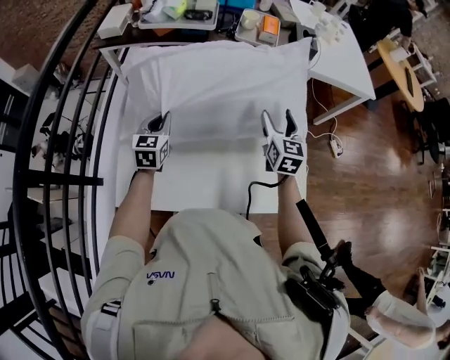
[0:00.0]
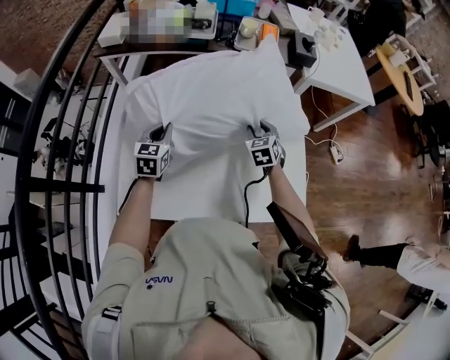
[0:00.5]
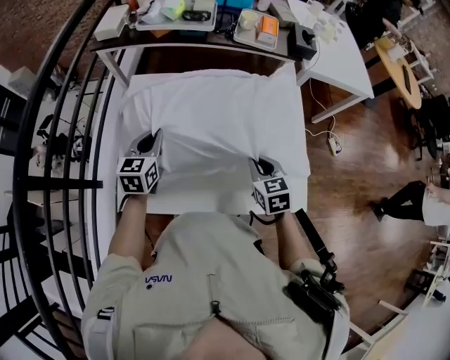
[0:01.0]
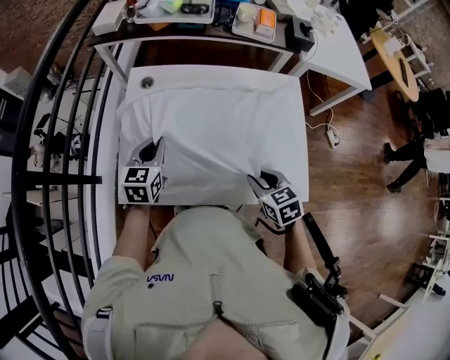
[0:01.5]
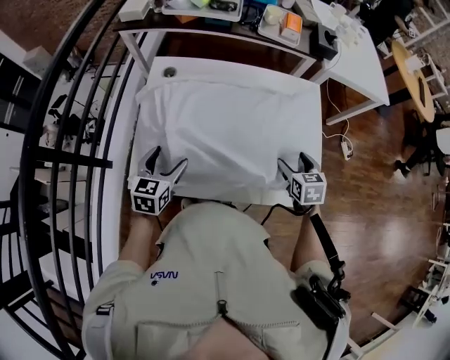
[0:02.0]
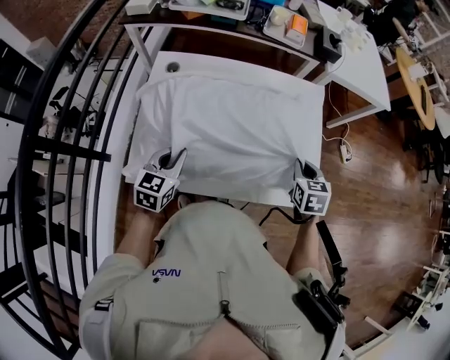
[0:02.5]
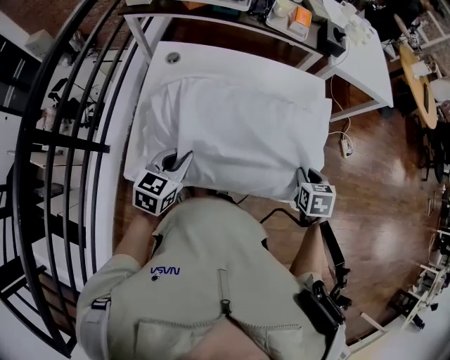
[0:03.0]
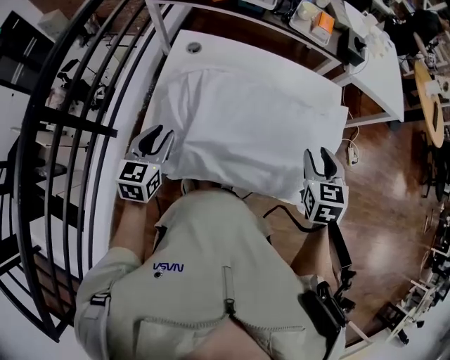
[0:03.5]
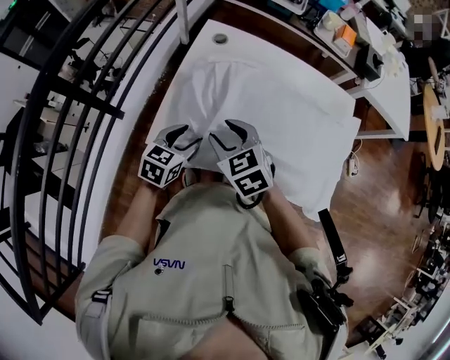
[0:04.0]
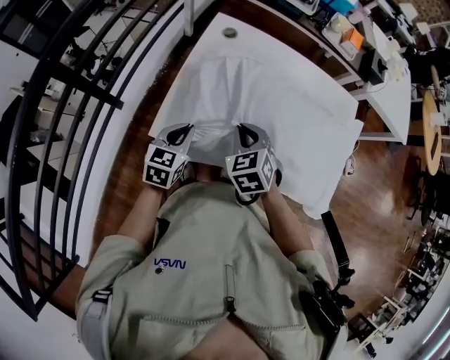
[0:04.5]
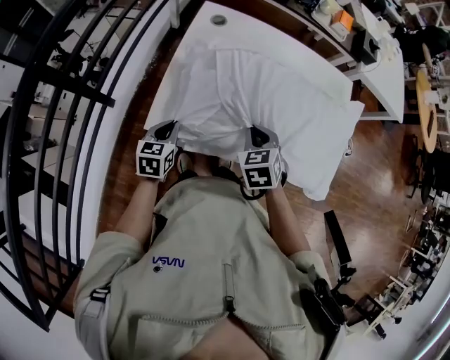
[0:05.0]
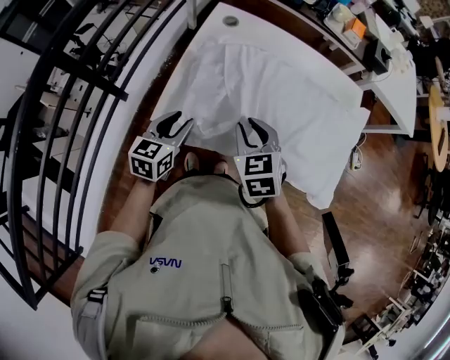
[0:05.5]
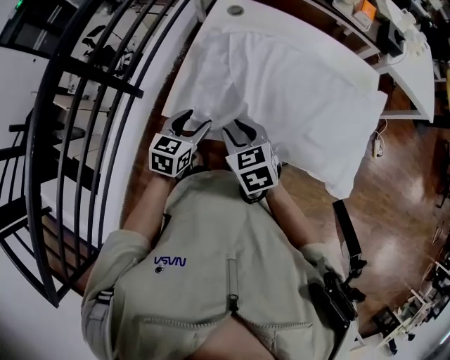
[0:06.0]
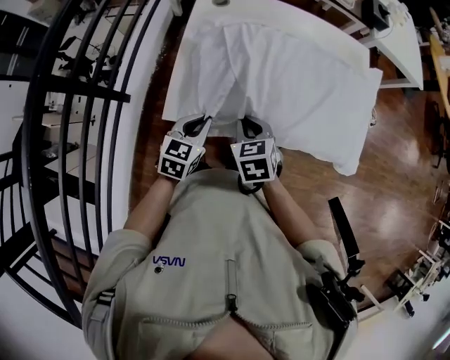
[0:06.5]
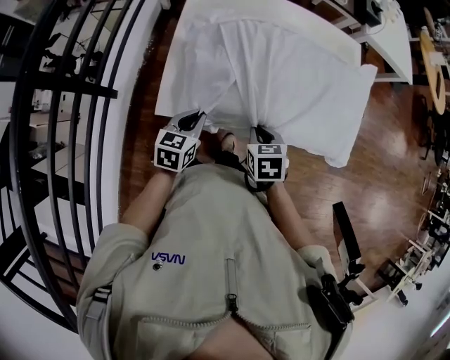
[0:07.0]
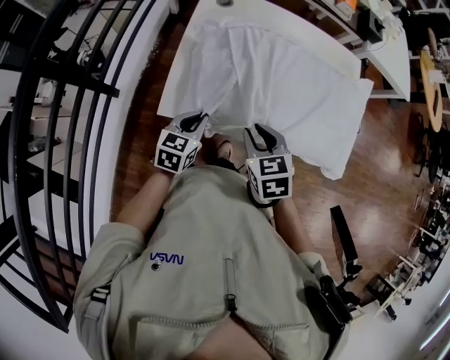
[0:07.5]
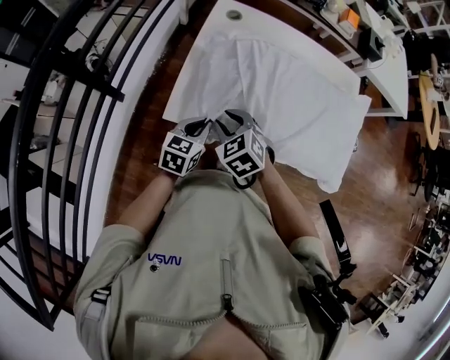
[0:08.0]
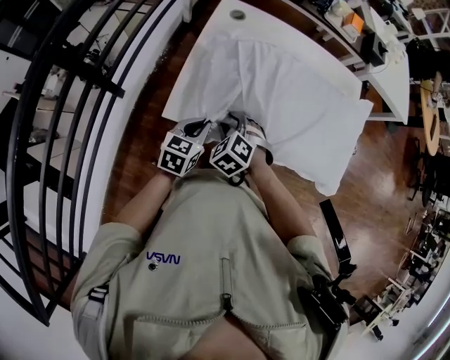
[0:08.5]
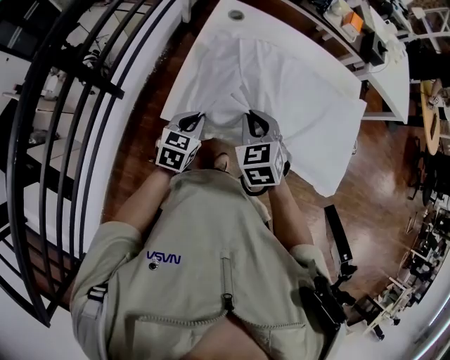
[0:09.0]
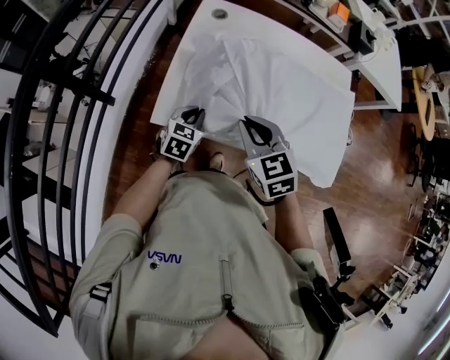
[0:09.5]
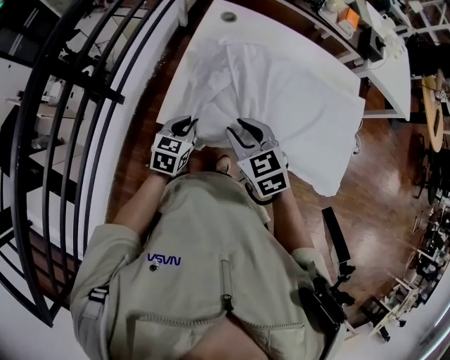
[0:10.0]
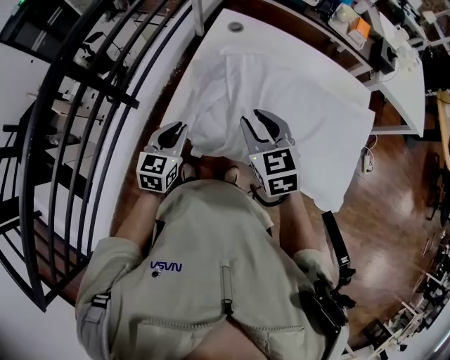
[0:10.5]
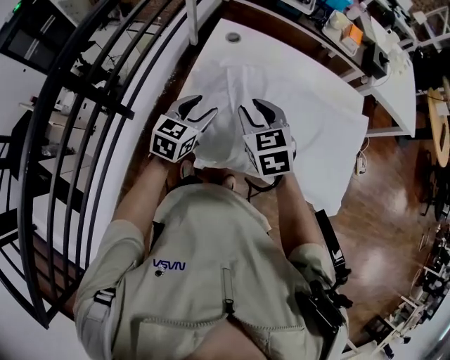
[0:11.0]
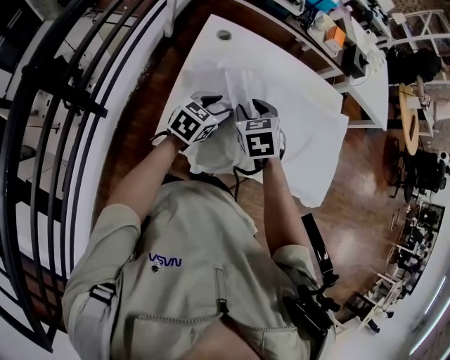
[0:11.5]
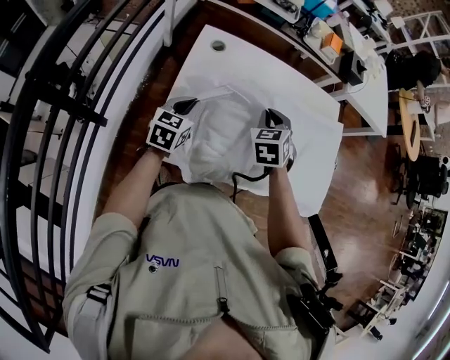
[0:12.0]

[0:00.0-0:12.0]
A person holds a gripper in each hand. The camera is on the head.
0:00.0 to 0:02.0: The left gripper travels backward by about 20 cm, and opens, while the right gripper goes about 15 cm backward and downward, points its fingers approximately 30 degrees further downward, and closes, then opens again.
0:02.0 to 0:04.0: The left gripper changes place by some 5 cm, and closes and opens again. The right gripper ends up about 35 cm from where it was, rotates roughly 40 degrees, and closes up.
0:04.0 to 0:06.0: The right gripper moves backward and downward, roughly 10 cm, travels to the right and back again, approximately 10 cm each way, and closes, then reopens. The left gripper travels downward and back again, roughly 5 cm each way, and closes and opens again.
0:06.0 to 0:08.0: The right gripper moves to the left, approximately 5 cm, swivels roughly 20 degrees, and closes, then reopens. The left gripper closes up.
0:08.0 to 0:10.0: The right gripper moves upward, roughly 5 cm.
0:10.0 to 0:12.0: The left gripper ends up some 15 cm from where it was, and opens, then closes once more; the right gripper changes place by about 20 cm, and rotates some 40 degrees.

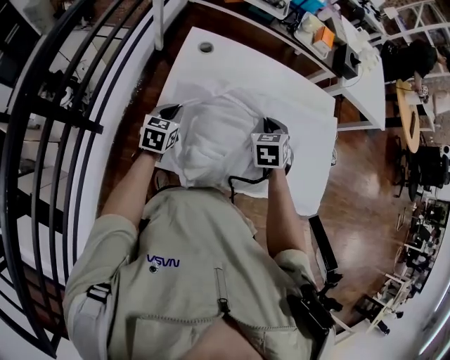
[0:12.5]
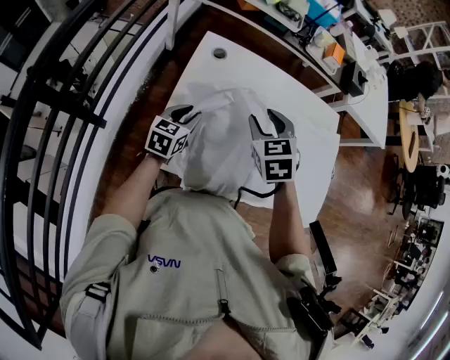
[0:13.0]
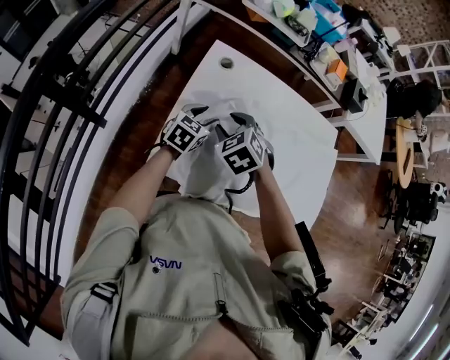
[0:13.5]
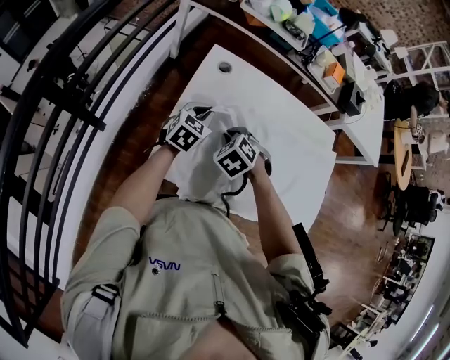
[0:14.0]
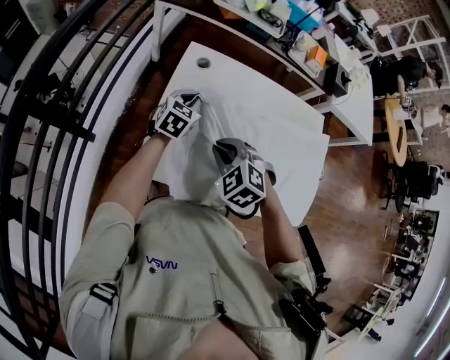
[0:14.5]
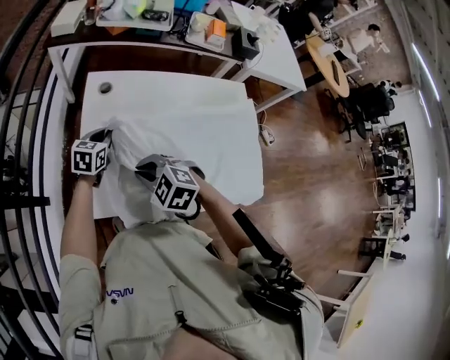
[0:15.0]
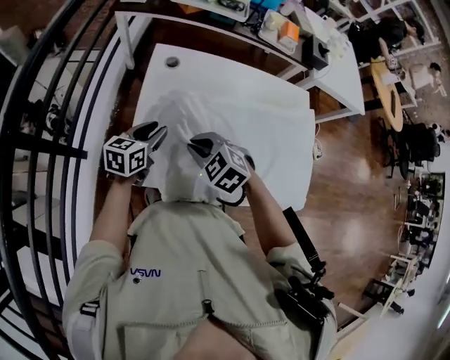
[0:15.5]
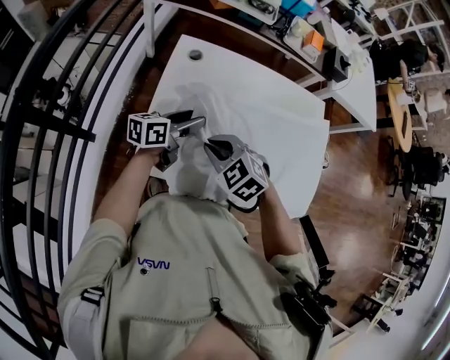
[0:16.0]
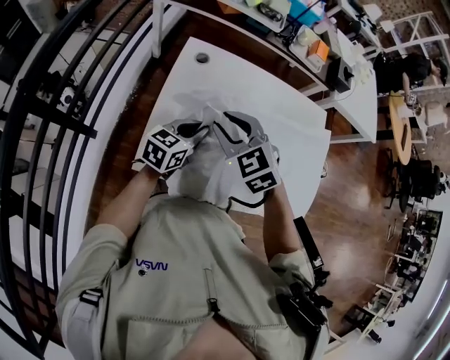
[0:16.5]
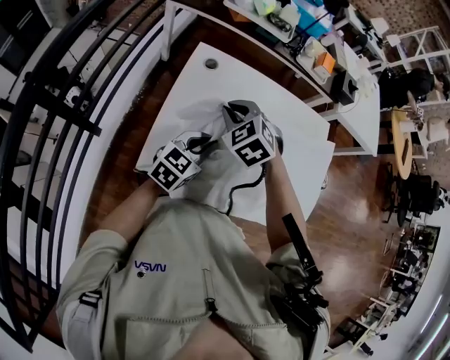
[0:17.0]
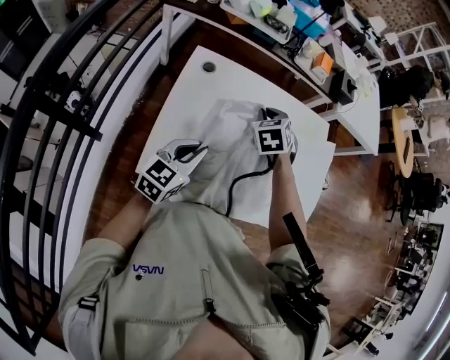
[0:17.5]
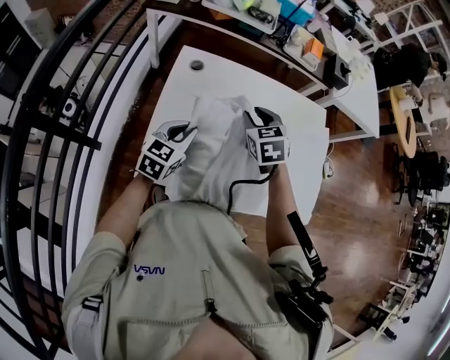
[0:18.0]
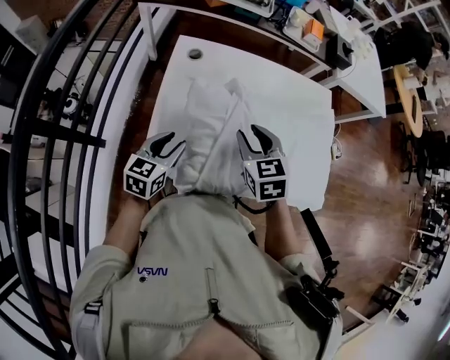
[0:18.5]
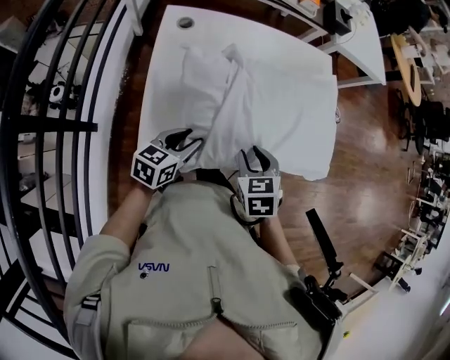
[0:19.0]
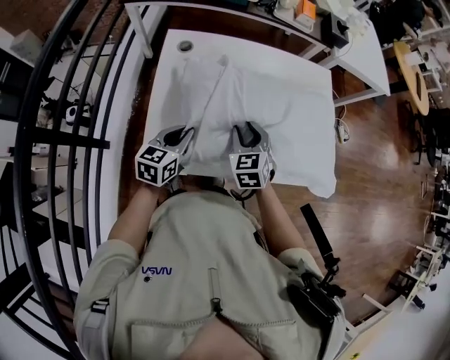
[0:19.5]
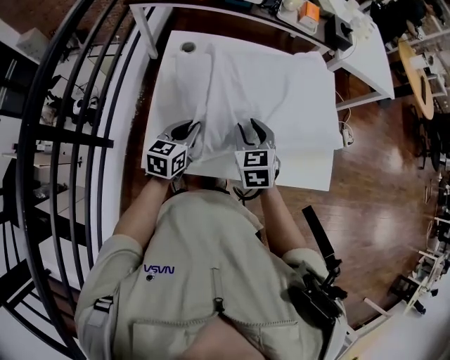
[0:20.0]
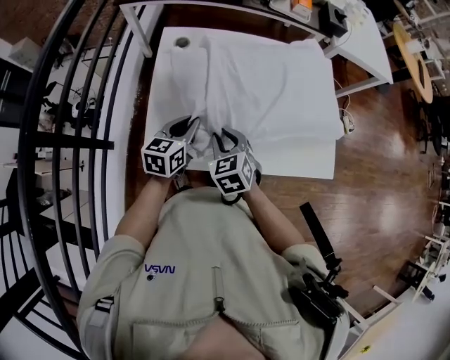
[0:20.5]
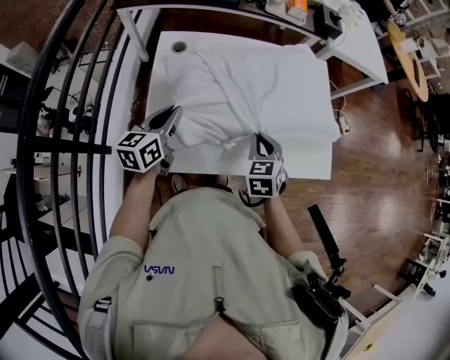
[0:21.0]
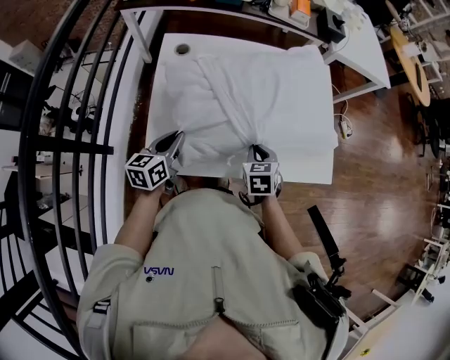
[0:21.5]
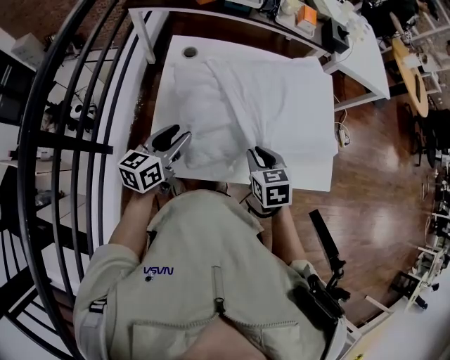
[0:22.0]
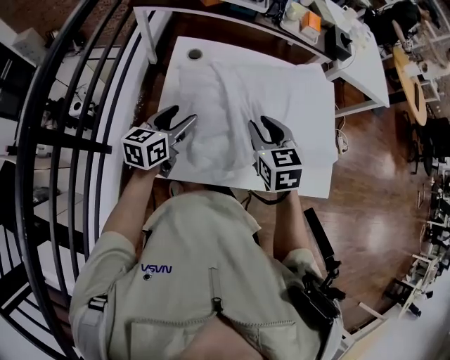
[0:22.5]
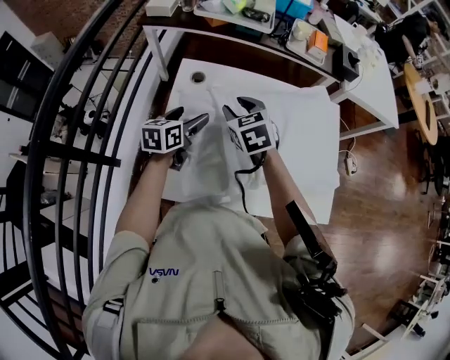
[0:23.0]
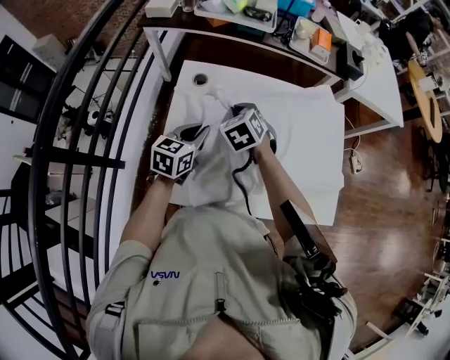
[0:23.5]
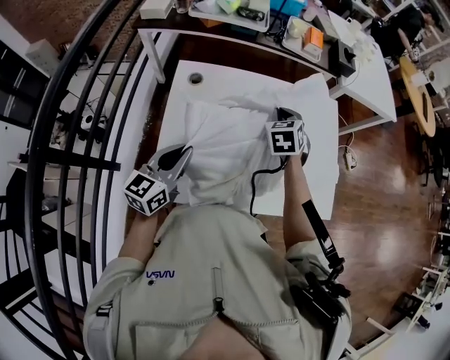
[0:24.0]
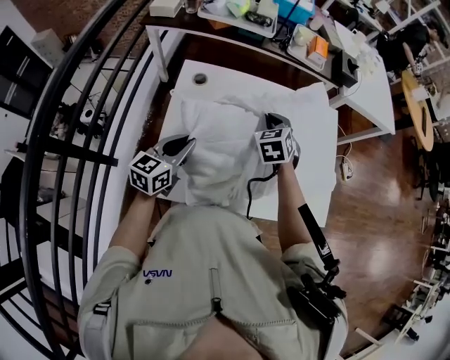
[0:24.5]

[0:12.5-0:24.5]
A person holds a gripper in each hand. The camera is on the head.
0:12.5 to 0:14.5: The right gripper heads to the left and backward, covering approximately 20 cm, swivels approximately 50 degrees, and opens, then closes once more. Meanwhile the left gripper is displaced forward and upward by approximately 10 cm, and opens, then closes once more.
0:14.5 to 0:16.5: The right gripper goes about 5 cm upward, and rotates roughly 20 degrees, while the left gripper goes some 10 cm backward, swivels about 20 degrees, and opens, then closes again.
0:16.5 to 0:18.5: The left gripper is displaced backward and to the left by roughly 10 cm; the right gripper travels to the right by about 10 cm, moves about 15 cm forward and comes back, and changes its angle by about 30 degrees.
0:18.5 to 0:20.5: The left gripper moves approximately 5 cm; the right gripper moves forward and backward over roughly 10 cm, changing direction 2 times.
0:20.5 to 0:22.5: The right gripper heads upward and forward, covering roughly 15 cm, while the left gripper is displaced to the left by some 5 cm, and opens.
0:22.5 to 0:24.5: The right gripper moves forward, about 15 cm, and changes its angle by roughly 20 degrees; the left gripper goes forward and returns, some 10 cm each way, and closes up.

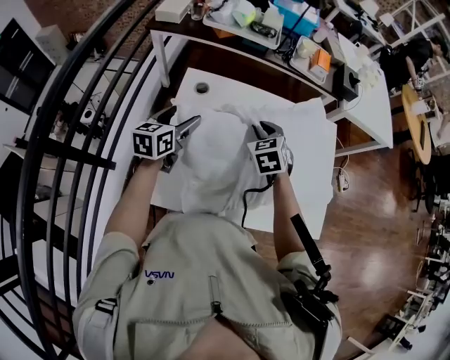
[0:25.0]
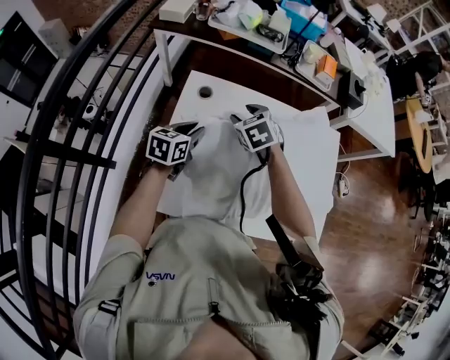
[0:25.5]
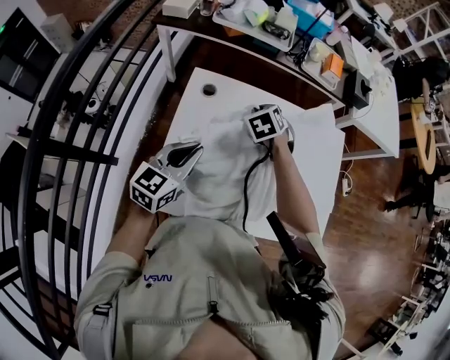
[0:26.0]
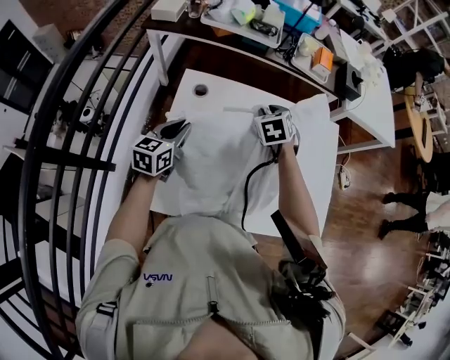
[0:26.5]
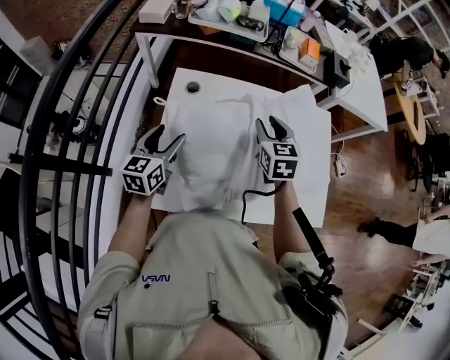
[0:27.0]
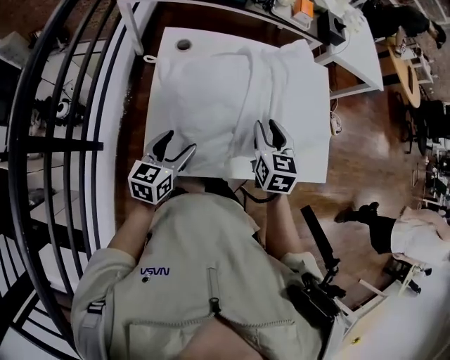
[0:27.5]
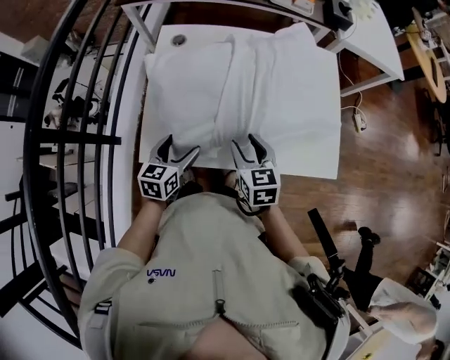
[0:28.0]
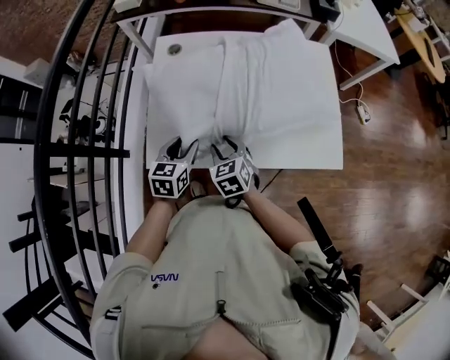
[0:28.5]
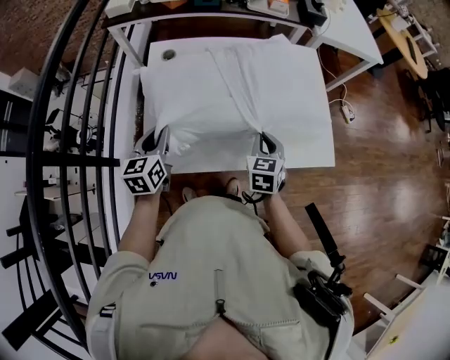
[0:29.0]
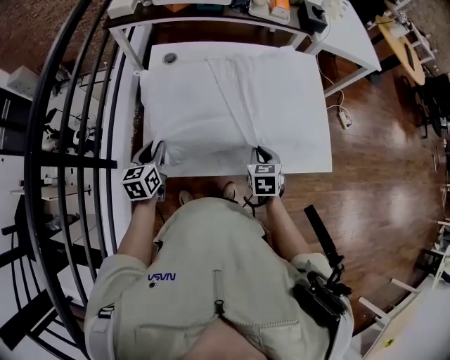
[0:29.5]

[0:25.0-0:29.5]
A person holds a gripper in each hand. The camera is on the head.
0:25.0 to 0:27.0: The left gripper moves up and down over approximately 10 cm, changing direction 2 times, and closes, then opens again. Meanwhile the right gripper moves approximately 10 cm to the left and comes back, and turns by about 20 degrees.
0:27.0 to 0:29.5: The left gripper goes roughly 15 cm backward and downward, and closes its fingers; the right gripper shifts approximately 30 cm backward, downward and to the right, turns by approximately 20 degrees, and closes.
